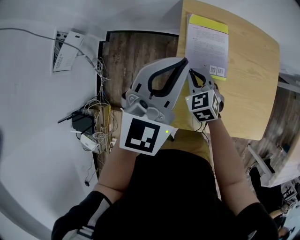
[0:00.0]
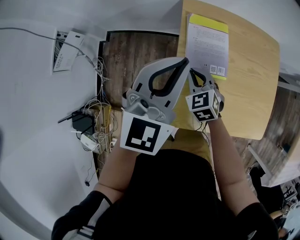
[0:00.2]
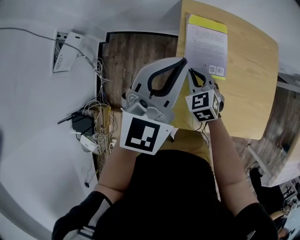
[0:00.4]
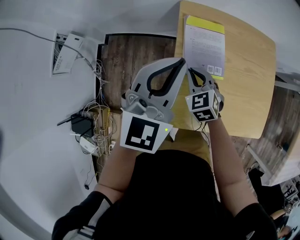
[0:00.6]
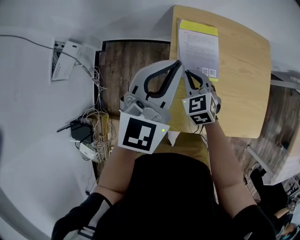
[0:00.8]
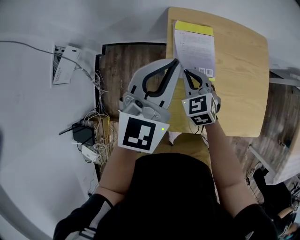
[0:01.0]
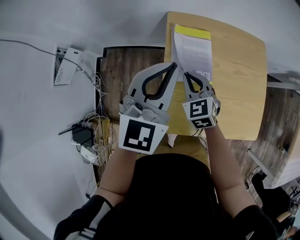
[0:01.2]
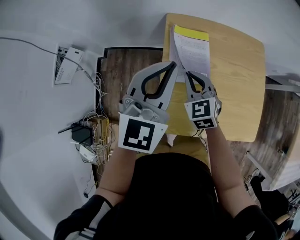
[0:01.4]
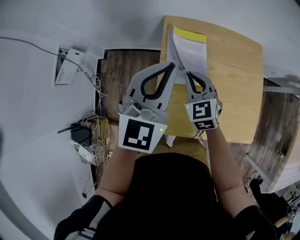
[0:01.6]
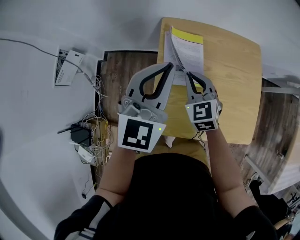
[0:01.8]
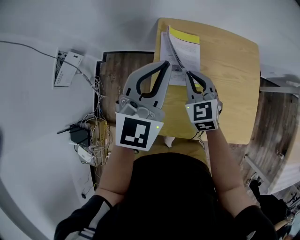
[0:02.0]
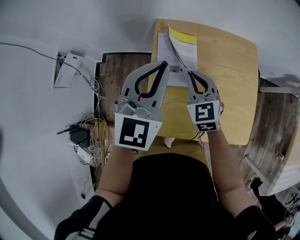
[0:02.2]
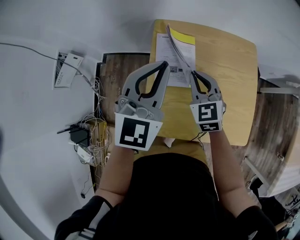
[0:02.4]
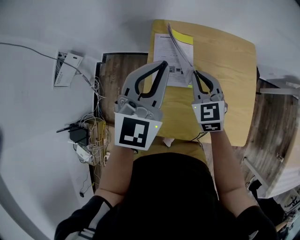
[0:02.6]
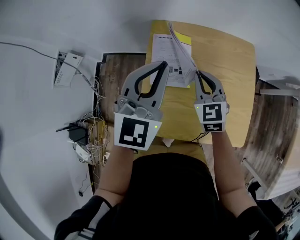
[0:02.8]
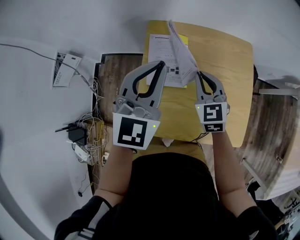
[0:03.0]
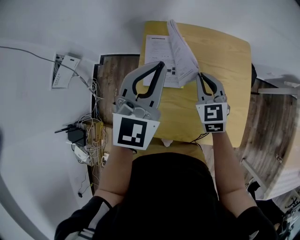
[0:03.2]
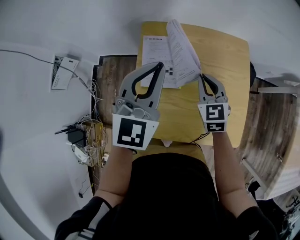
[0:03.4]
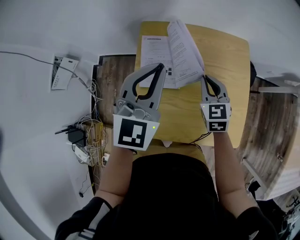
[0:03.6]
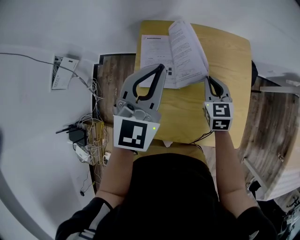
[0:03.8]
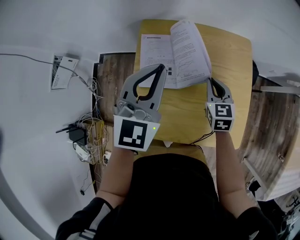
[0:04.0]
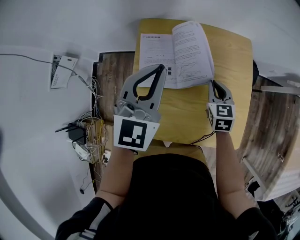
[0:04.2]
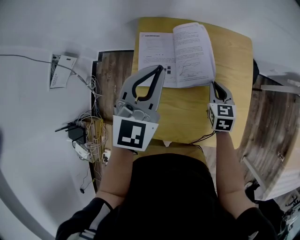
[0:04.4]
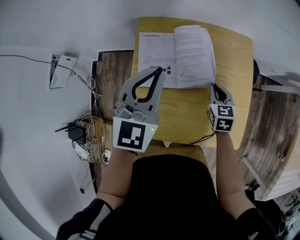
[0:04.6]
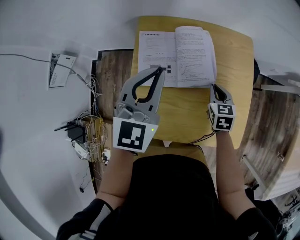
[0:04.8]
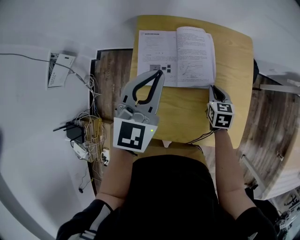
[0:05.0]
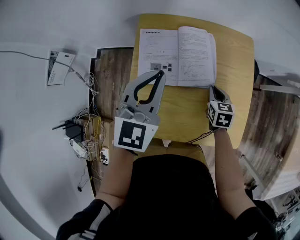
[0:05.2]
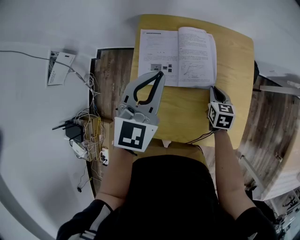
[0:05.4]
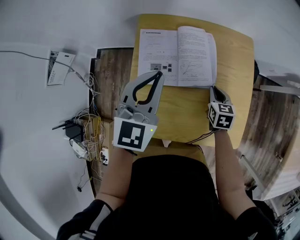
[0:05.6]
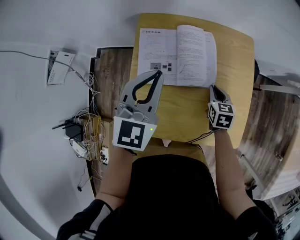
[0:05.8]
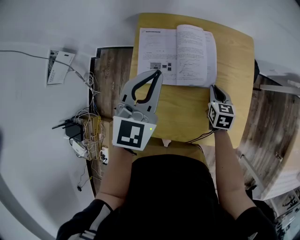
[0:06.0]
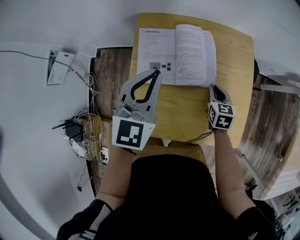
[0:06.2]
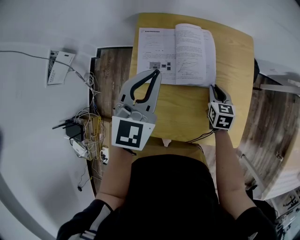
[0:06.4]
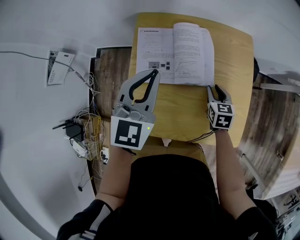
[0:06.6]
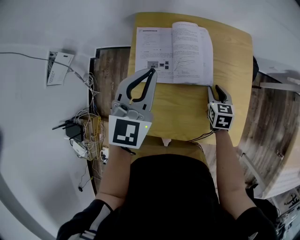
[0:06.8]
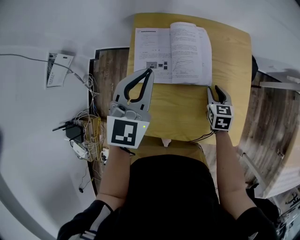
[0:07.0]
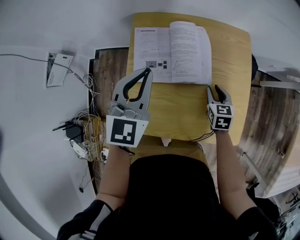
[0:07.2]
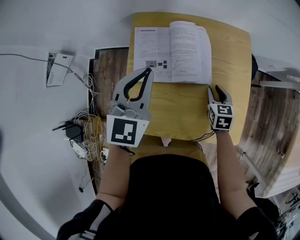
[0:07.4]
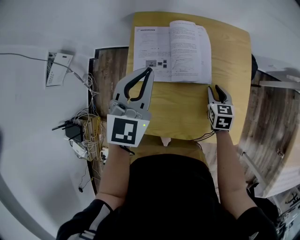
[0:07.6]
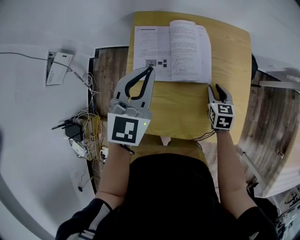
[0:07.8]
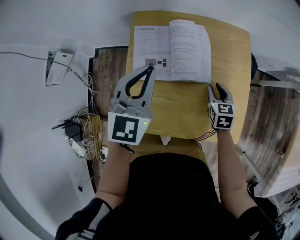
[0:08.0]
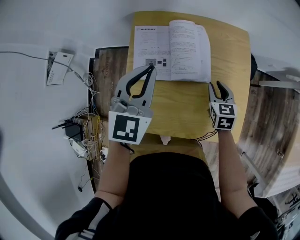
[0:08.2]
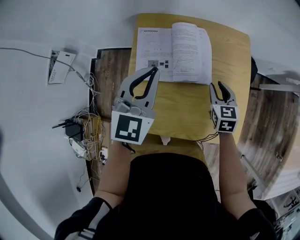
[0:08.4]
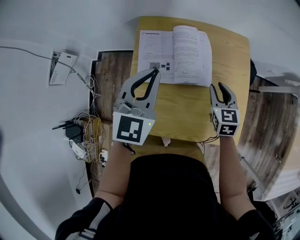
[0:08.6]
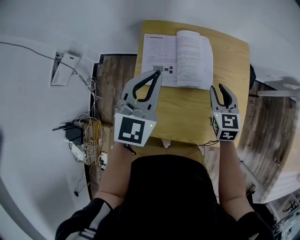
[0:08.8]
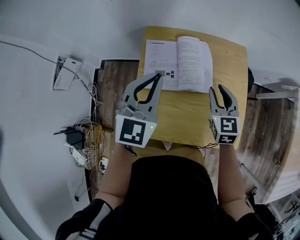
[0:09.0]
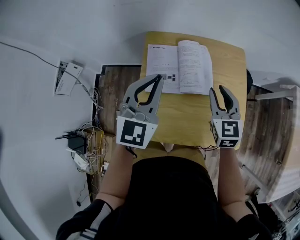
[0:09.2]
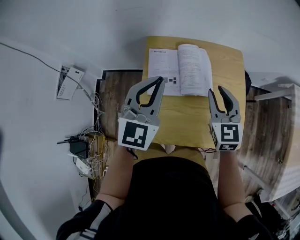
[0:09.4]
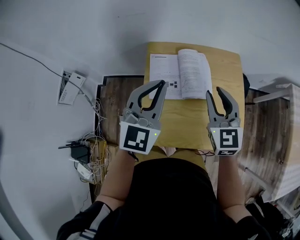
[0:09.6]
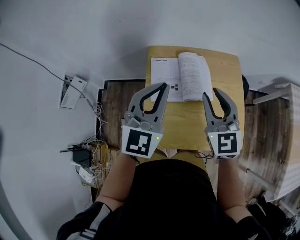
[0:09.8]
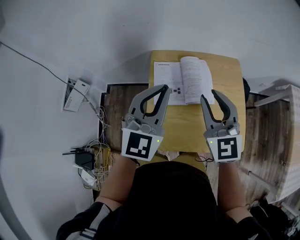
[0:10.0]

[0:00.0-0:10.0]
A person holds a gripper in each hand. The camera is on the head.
0:00.0 to 0:01.4: The left gripper ends up about 5 cm from where it was; the right gripper heads upward, covering roughly 10 cm.
0:01.4 to 0:02.8: The right gripper goes about 15 cm to the right; the left gripper travels to the right by about 10 cm.
0:02.8 to 0:04.2: The left gripper moves some 5 cm. The right gripper shifts some 15 cm to the right and downward, and turns by about 20 degrees.
0:04.2 to 0:05.8: The right gripper shifts about 5 cm downward.
0:05.8 to 0:07.2: The right gripper opens its fingers.
0:07.2 to 0:08.6: The right gripper is displaced upward by roughly 10 cm.
0:08.6 to 0:10.0: The right gripper is displaced upward and to the left by roughly 30 cm, and changes its angle by roughly 30 degrees, while the left gripper travels upward by some 10 cm.

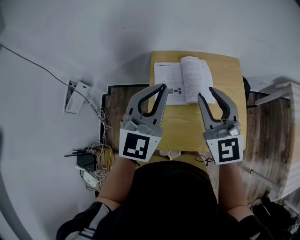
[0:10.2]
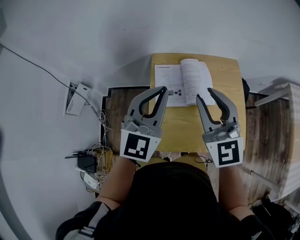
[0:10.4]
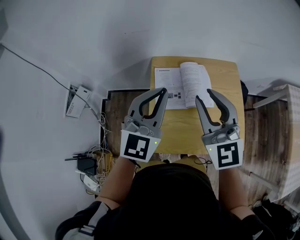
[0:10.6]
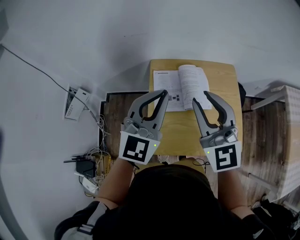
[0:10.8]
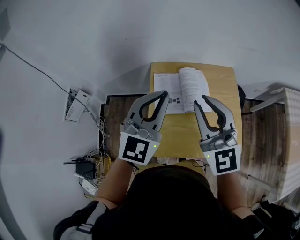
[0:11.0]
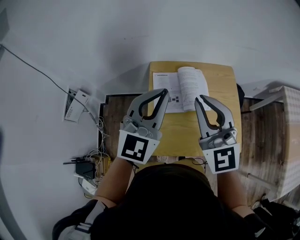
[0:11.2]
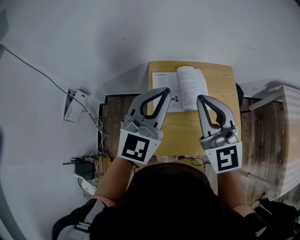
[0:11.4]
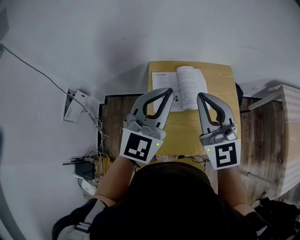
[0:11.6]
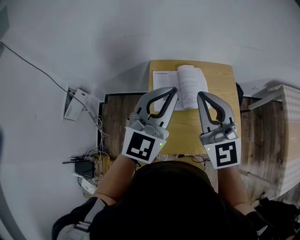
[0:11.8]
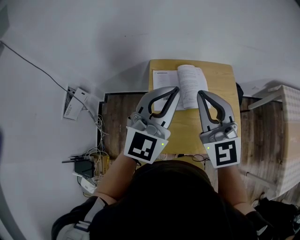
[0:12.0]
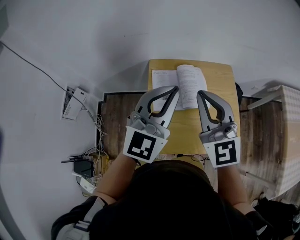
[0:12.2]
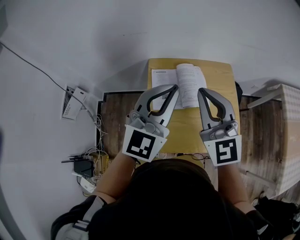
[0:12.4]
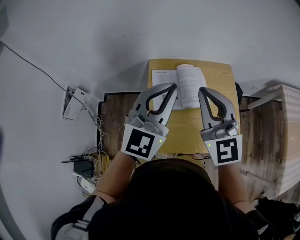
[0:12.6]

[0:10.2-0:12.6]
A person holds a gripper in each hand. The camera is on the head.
0:10.2 to 0:11.4: The right gripper shifts some 5 cm upward, and closes up.
0:11.4 to 0:12.6: There are only small adjustments of the grippers.

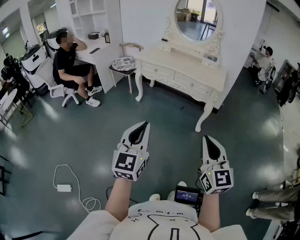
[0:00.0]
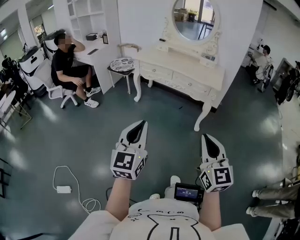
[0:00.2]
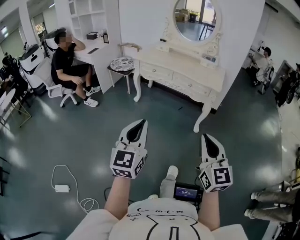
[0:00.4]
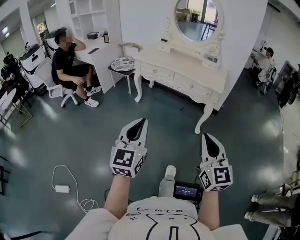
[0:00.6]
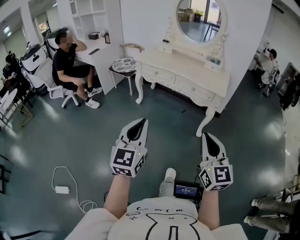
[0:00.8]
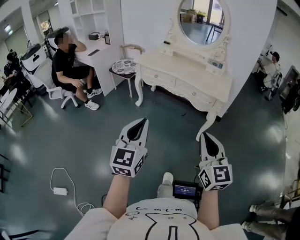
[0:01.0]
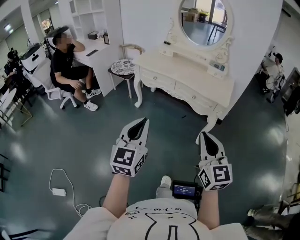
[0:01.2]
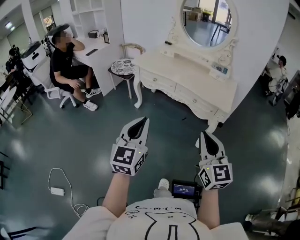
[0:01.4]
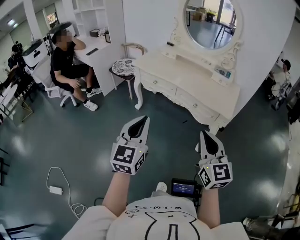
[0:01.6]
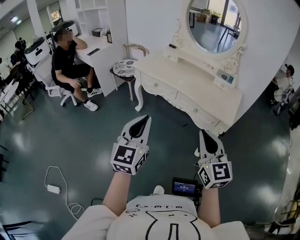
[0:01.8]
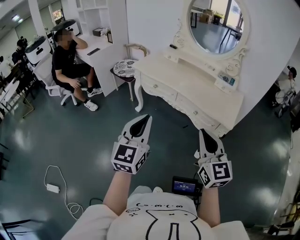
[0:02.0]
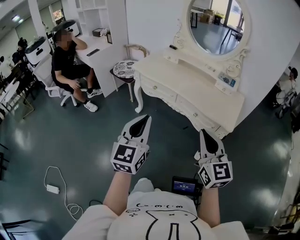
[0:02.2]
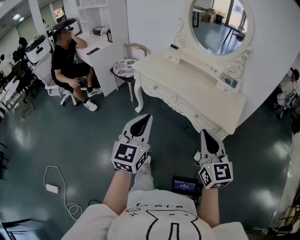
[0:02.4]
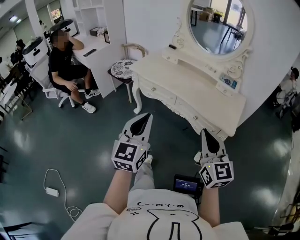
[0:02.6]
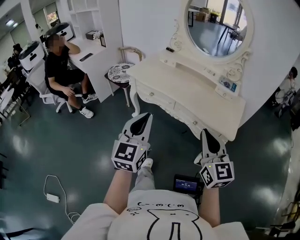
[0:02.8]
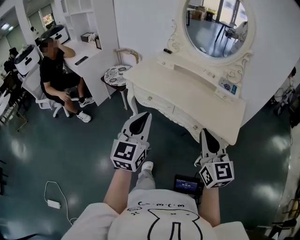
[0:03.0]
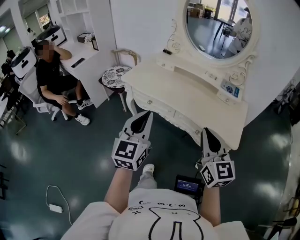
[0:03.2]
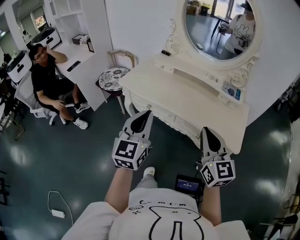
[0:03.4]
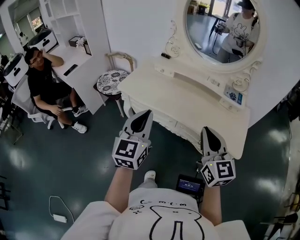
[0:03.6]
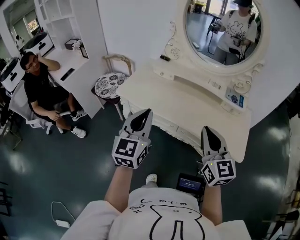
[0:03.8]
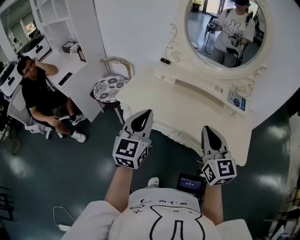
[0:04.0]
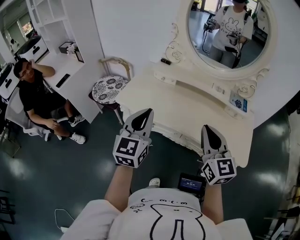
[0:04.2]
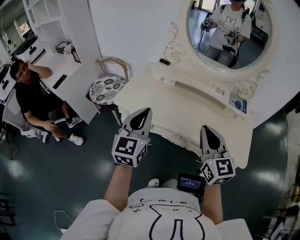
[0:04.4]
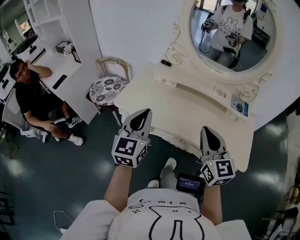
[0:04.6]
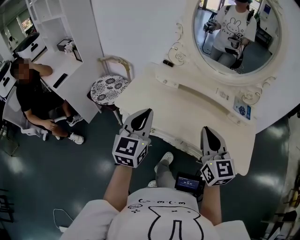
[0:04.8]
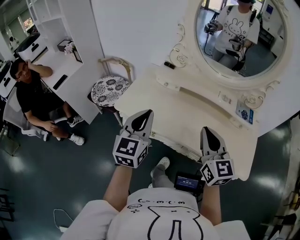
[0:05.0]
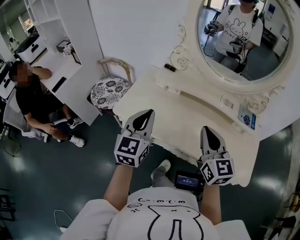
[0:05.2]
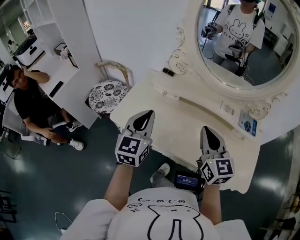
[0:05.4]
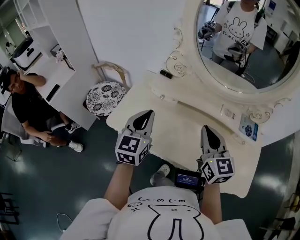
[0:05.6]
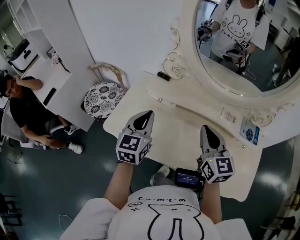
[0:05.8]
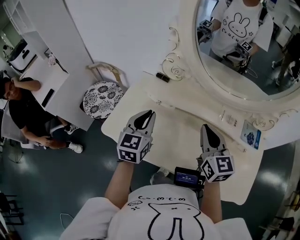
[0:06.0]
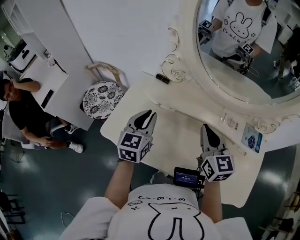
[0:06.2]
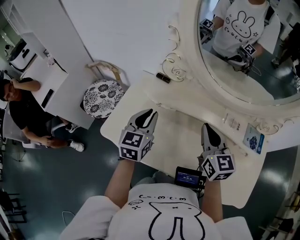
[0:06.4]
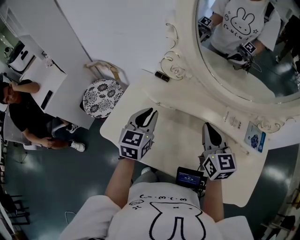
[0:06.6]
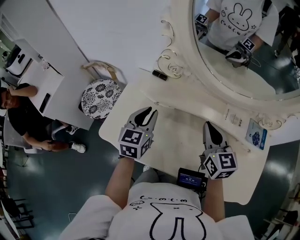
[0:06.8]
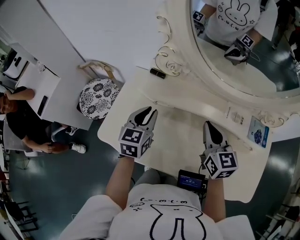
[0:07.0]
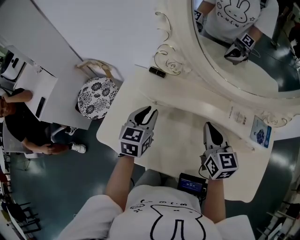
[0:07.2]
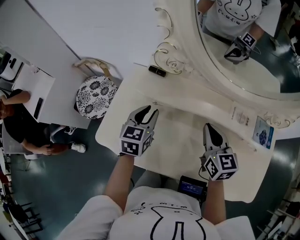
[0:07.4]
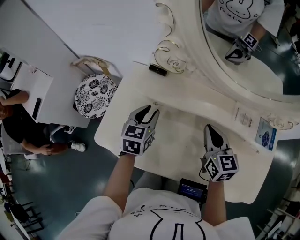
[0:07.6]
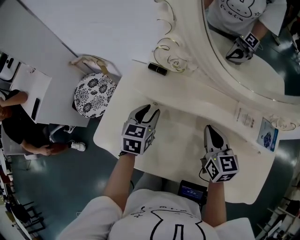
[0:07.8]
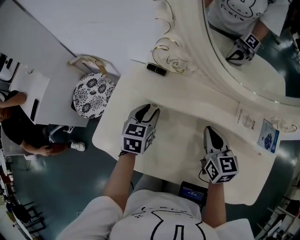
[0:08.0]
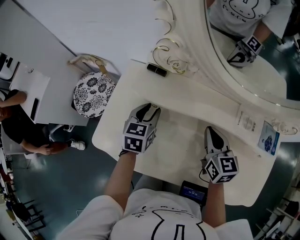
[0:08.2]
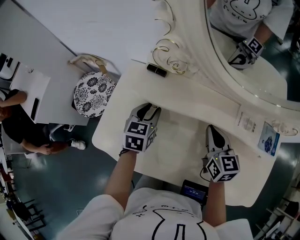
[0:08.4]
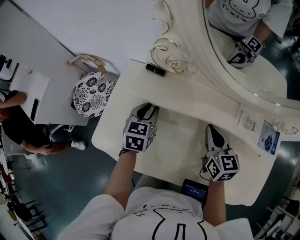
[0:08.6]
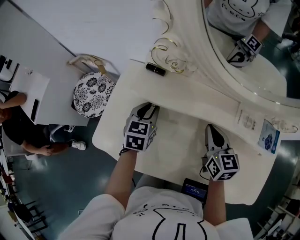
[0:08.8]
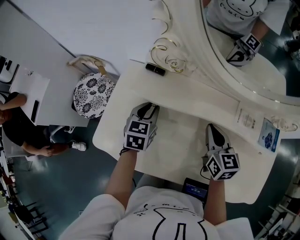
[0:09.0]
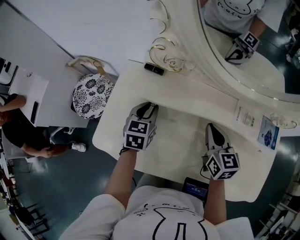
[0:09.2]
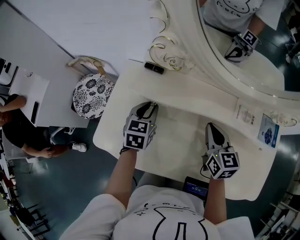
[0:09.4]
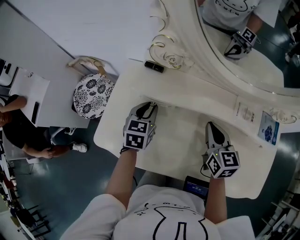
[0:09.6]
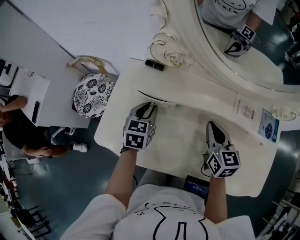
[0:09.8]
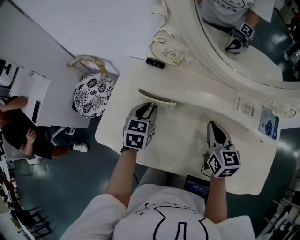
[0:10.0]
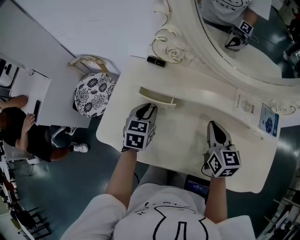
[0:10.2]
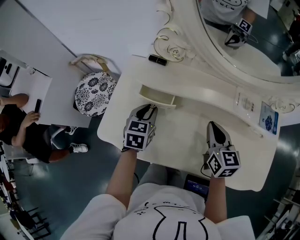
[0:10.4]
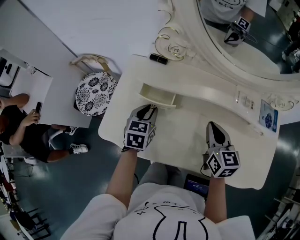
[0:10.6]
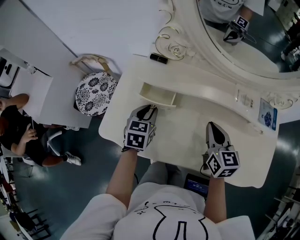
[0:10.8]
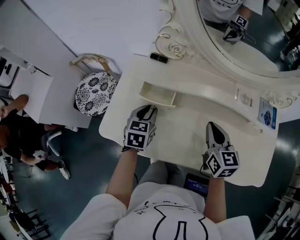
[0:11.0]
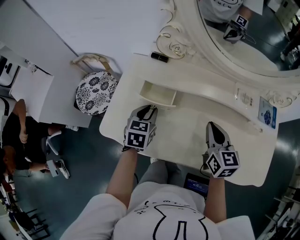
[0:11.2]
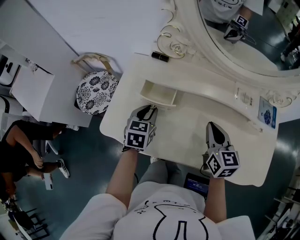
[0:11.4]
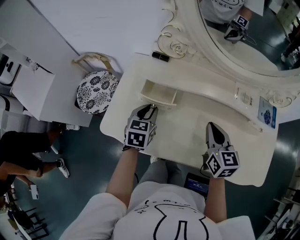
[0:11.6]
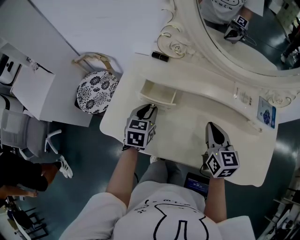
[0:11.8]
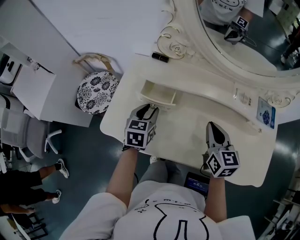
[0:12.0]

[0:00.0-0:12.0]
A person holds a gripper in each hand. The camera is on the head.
0:00.0 to 0:01.6: Both grippers travel together forward, approximately 30 cm.
0:01.6 to 0:03.0: Both grippers travel together forward, roughly 20 cm.
0:03.0 to 0:04.4: Both grippers move forward, about 25 cm.
0:04.4 to 0:06.0: The two grippers go about 25 cm forward.
0:06.0 to 0:07.6: The two grippers go approximately 15 cm downward and forward. The left gripper opens up.
0:07.6 to 0:09.0: There are only small adjustments of the grippers.
0:09.0 to 0:10.4: Both grippers move backward, about 5 cm.
0:10.4 to 0:12.0: The grippers make only small movements.
